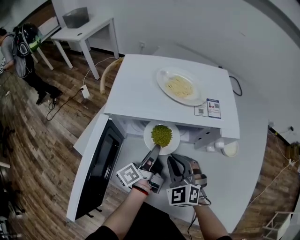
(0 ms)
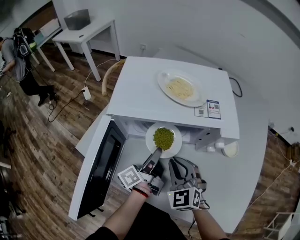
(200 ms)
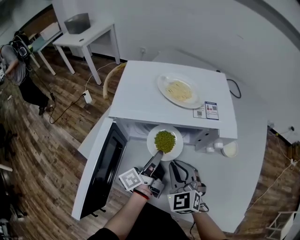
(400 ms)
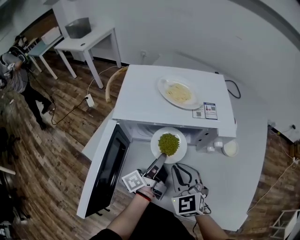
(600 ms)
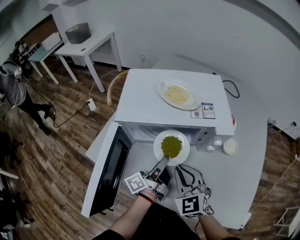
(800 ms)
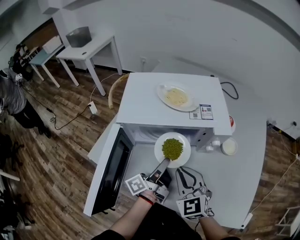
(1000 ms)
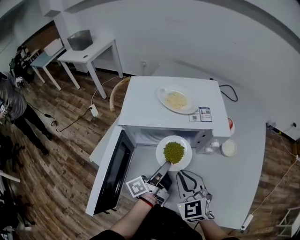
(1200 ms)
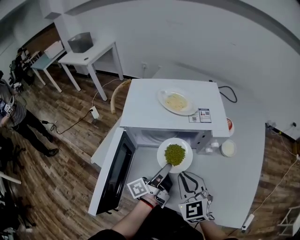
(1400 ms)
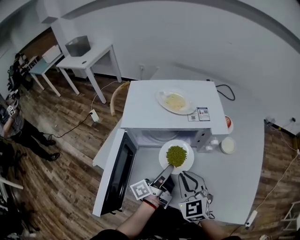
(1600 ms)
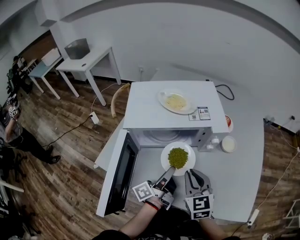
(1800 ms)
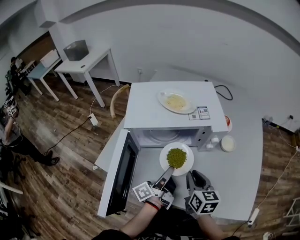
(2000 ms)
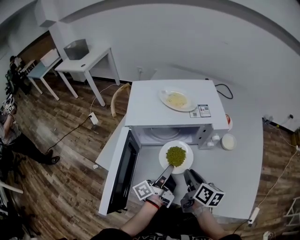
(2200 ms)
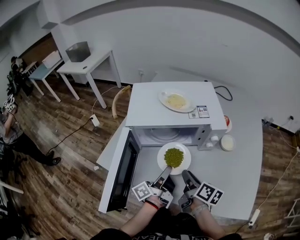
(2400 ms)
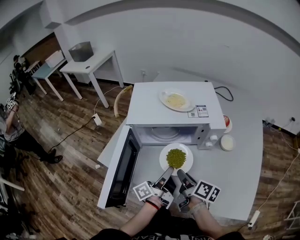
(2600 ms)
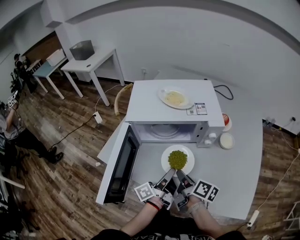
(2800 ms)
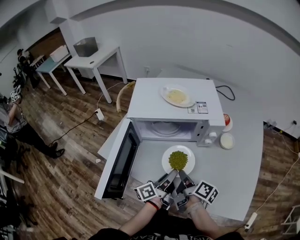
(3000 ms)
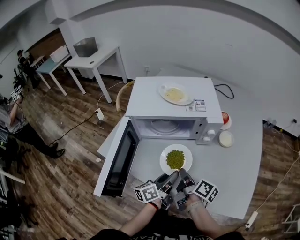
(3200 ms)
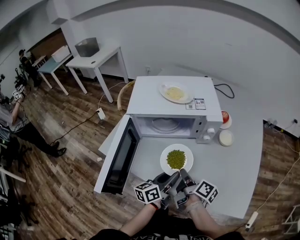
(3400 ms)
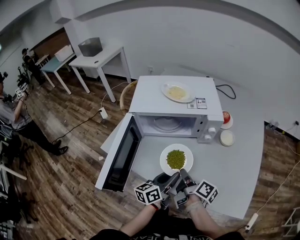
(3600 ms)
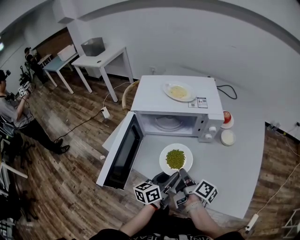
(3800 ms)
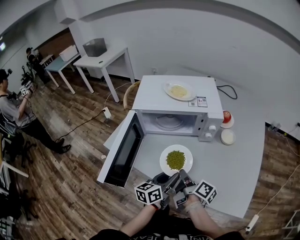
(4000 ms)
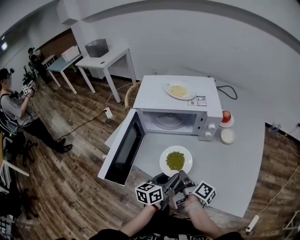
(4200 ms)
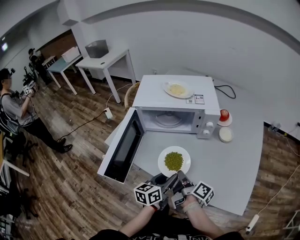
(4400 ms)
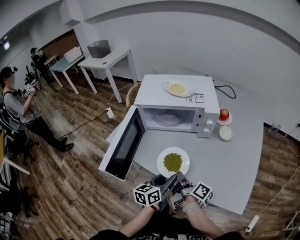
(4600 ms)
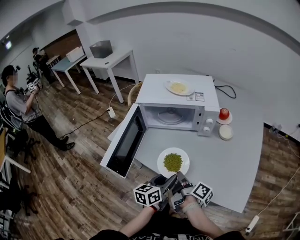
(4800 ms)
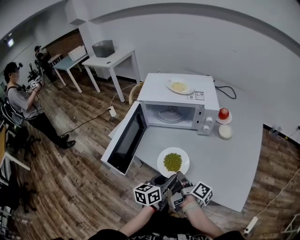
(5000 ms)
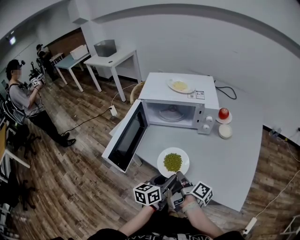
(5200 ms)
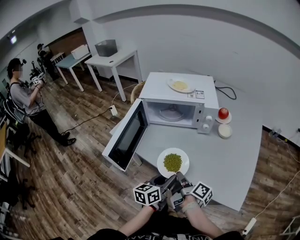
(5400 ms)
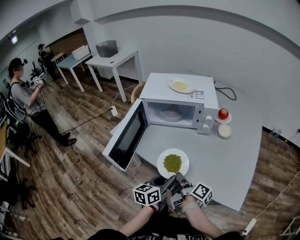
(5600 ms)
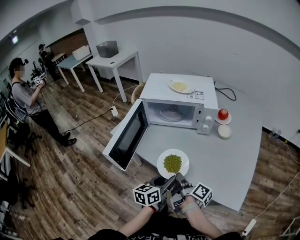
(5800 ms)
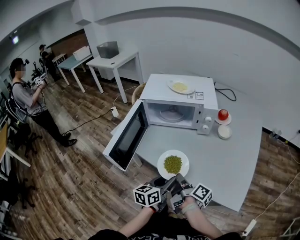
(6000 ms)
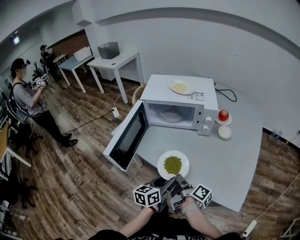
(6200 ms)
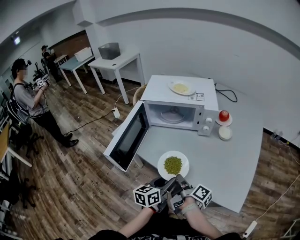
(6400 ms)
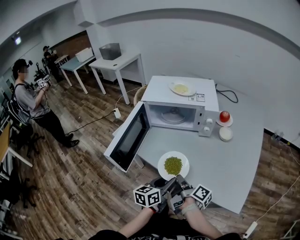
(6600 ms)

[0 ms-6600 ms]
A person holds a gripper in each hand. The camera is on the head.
0 ms to 1600 ms: The left gripper travels backward and upward by some 10 cm, while the right gripper is displaced upward and backward by approximately 10 cm, and swivels roughly 20 degrees.
1600 ms to 3200 ms: The right gripper moves downward, about 5 cm, and rotates around the line of its fingers by roughly 90 degrees, clockwise from behind, while the left gripper travels backward by about 10 cm, and turns by some 30 degrees.
3200 ms to 5000 ms: The grippers both shift backward by some 10 cm. The left gripper turns by roughly 30 degrees.
5000 ms to 6600 ms: There are only small adjustments of the grippers.

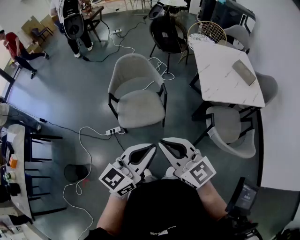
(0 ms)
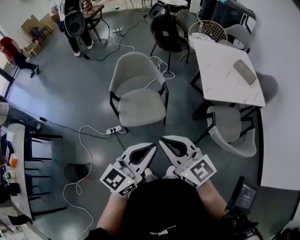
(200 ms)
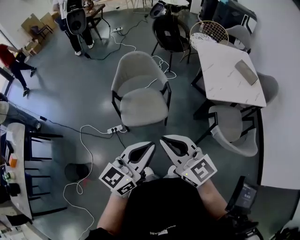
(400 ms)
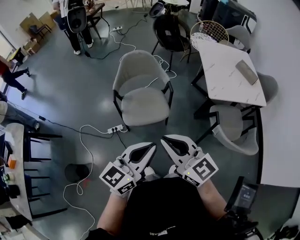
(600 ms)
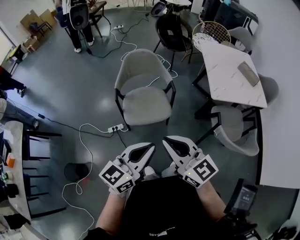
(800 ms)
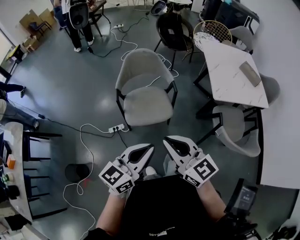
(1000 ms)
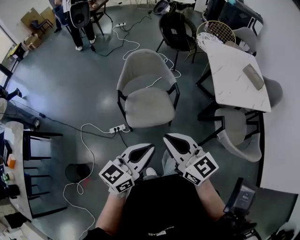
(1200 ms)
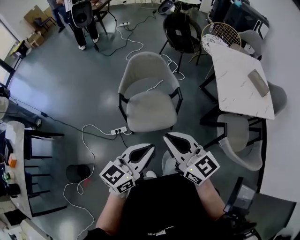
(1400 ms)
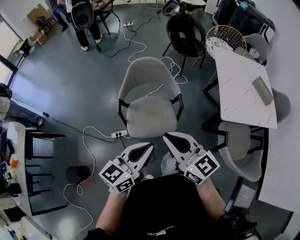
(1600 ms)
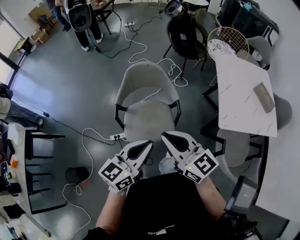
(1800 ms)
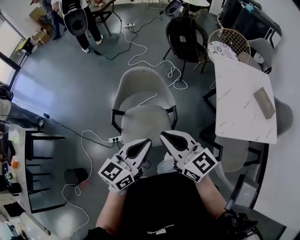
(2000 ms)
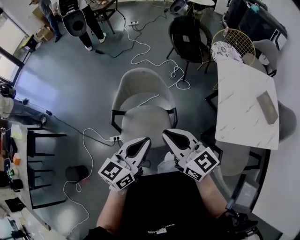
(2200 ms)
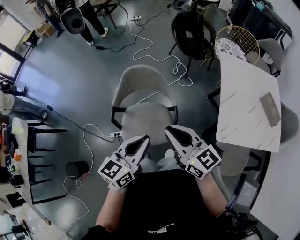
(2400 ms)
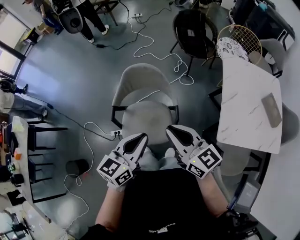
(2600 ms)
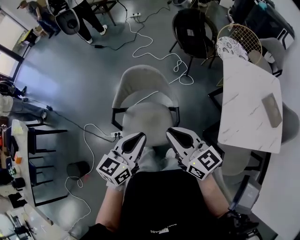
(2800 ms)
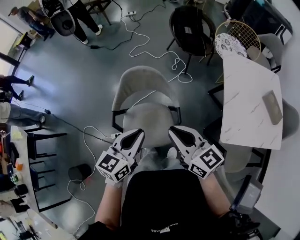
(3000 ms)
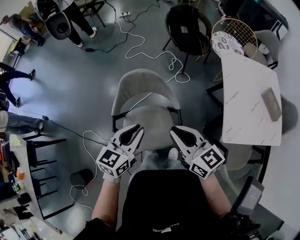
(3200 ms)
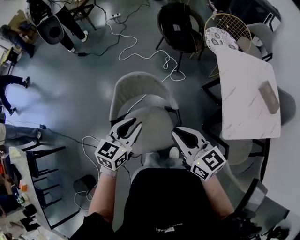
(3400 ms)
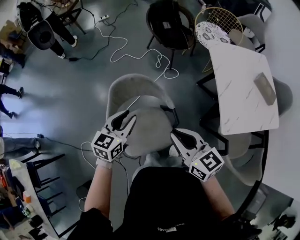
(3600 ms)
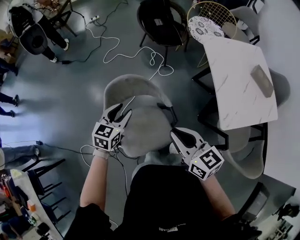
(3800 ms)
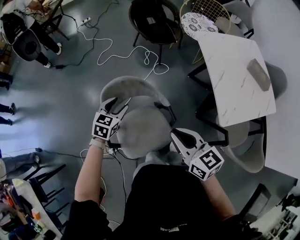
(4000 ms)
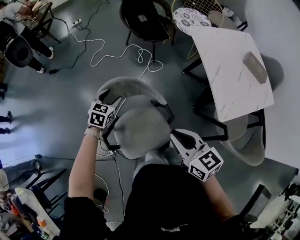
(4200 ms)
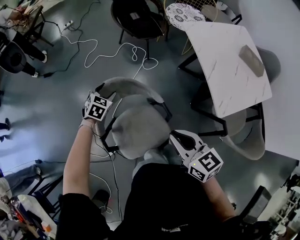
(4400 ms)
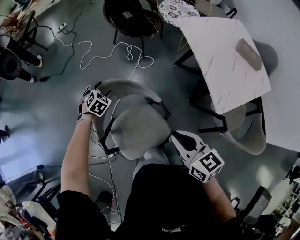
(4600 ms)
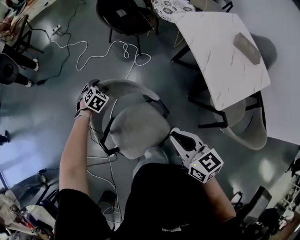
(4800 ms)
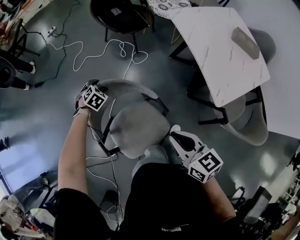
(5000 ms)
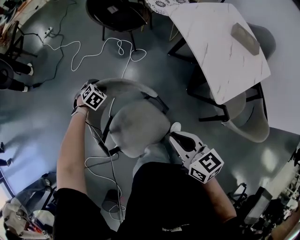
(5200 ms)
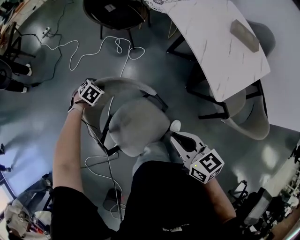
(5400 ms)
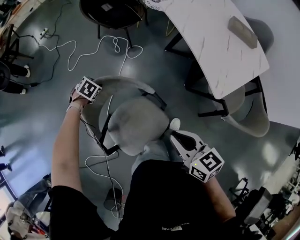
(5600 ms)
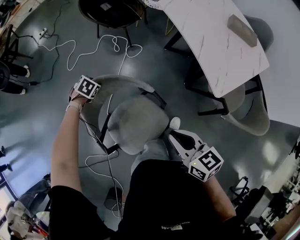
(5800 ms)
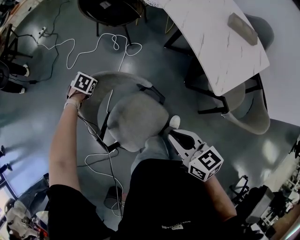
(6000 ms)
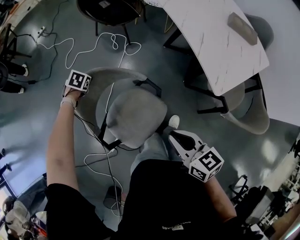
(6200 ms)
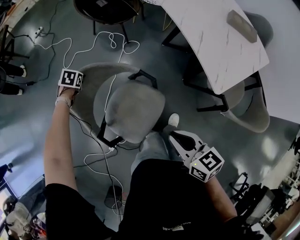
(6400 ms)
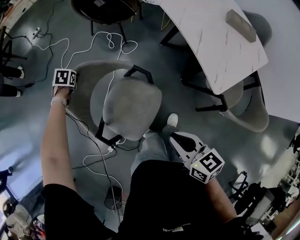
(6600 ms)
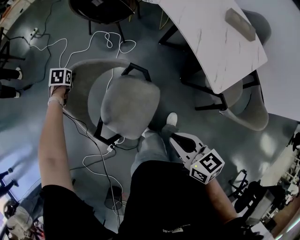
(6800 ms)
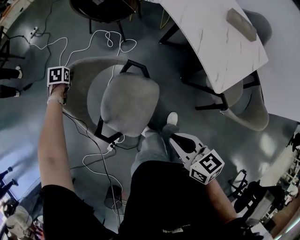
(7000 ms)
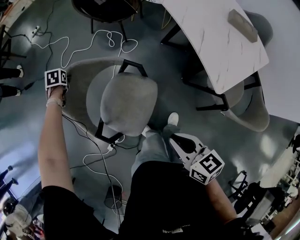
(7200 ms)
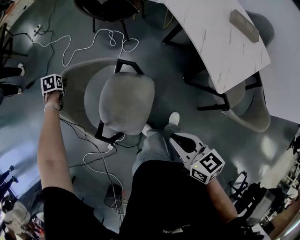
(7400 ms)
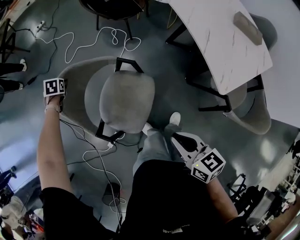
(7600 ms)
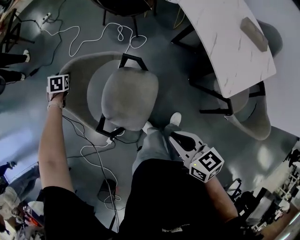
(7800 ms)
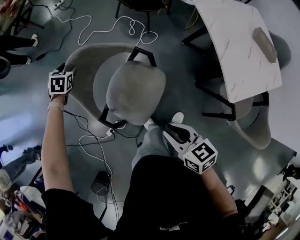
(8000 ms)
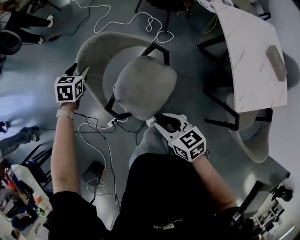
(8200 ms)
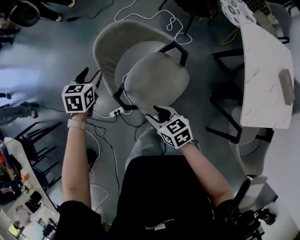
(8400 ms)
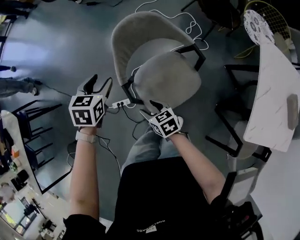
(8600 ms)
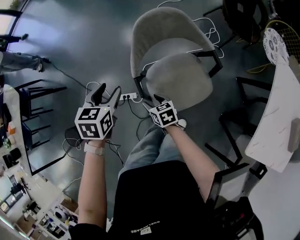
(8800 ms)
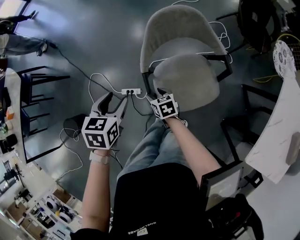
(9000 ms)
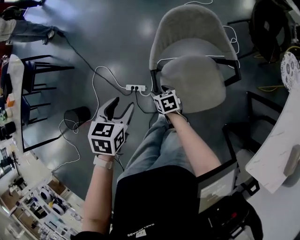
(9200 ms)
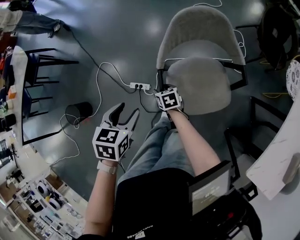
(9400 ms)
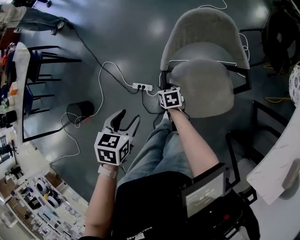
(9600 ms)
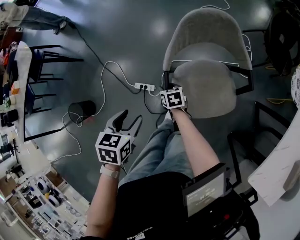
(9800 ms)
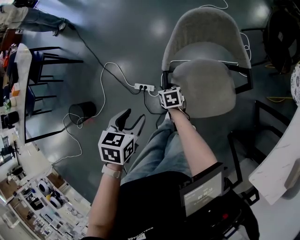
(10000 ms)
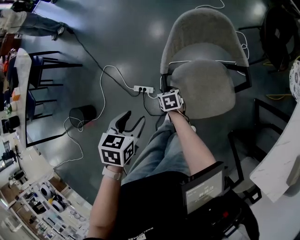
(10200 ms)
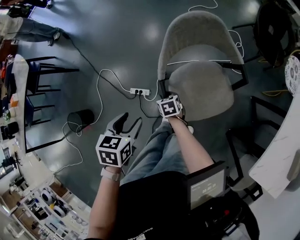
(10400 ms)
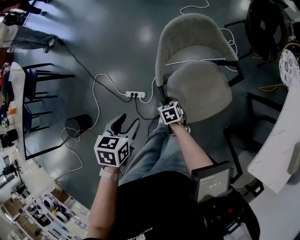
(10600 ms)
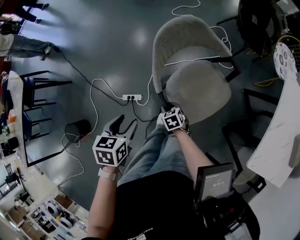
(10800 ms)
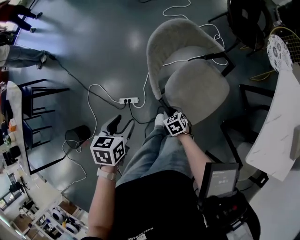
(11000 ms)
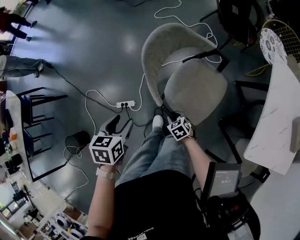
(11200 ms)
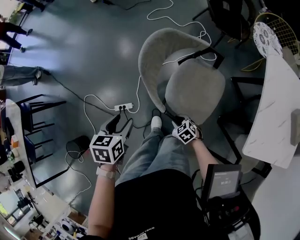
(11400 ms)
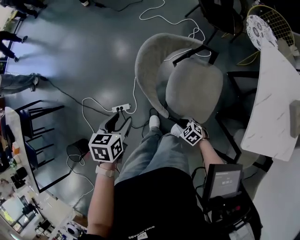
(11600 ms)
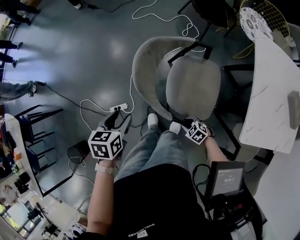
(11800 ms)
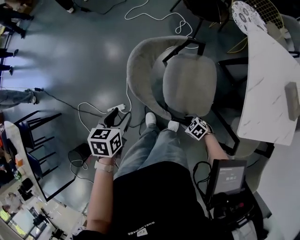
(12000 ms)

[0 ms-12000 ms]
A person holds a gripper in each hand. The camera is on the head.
0 ms to 1600 ms: Both grippers move forward and to the left, about 20 cm.
1600 ms to 3000 ms: The right gripper goes some 20 cm forward and to the right. Meanwhile the left gripper travels forward by approximately 20 cm.
3000 ms to 4400 ms: The left gripper shifts roughly 40 cm forward and downward, points its fingers some 40 degrees further downward, and opens up, while the right gripper moves downward, about 5 cm, and rotates approximately 30 degrees.
4400 ms to 6000 ms: The left gripper shifts about 10 cm downward, changes its angle by about 30 degrees, and closes. Meanwhile the right gripper shifts approximately 5 cm downward.
6000 ms to 7600 ms: The left gripper shifts by about 20 cm, and swivels some 30 degrees.
7600 ms to 9000 ms: The right gripper ends up about 40 cm from where it was, swivels approximately 60 degrees, and opens; the left gripper moves some 50 cm, and twists approximately 50 degrees counterclockwise, seen from behind.
9000 ms to 10400 ms: The right gripper shifts roughly 5 cm downward, and closes its fingers; the left gripper travels backward by about 5 cm.
10400 ms to 12000 ms: The right gripper goes about 40 cm backward and to the right. The left gripper goes approximately 15 cm to the right, and swivels about 20 degrees.

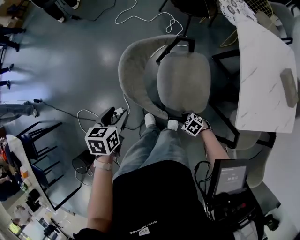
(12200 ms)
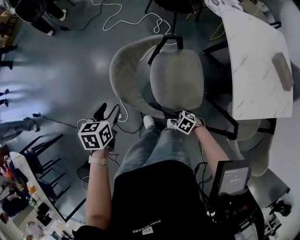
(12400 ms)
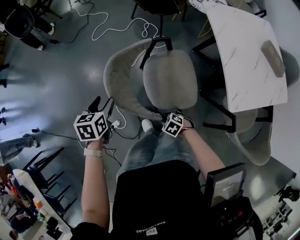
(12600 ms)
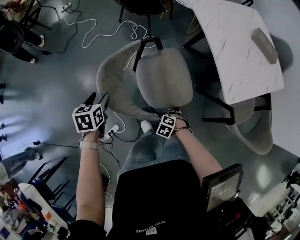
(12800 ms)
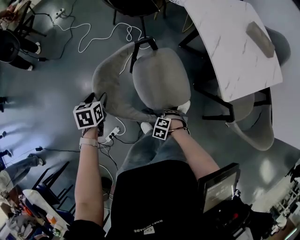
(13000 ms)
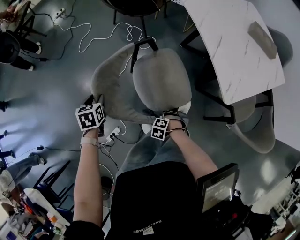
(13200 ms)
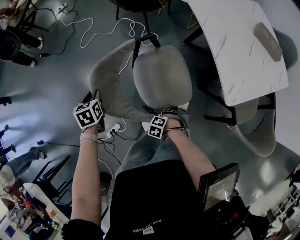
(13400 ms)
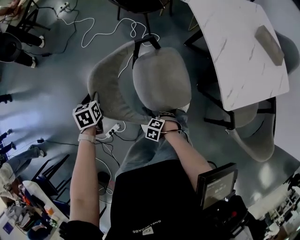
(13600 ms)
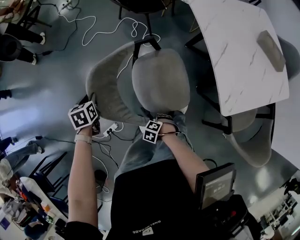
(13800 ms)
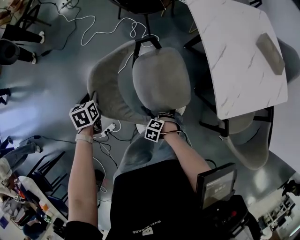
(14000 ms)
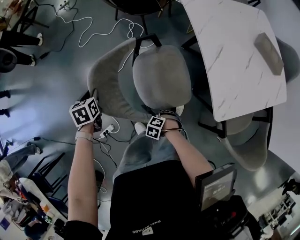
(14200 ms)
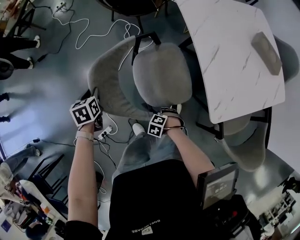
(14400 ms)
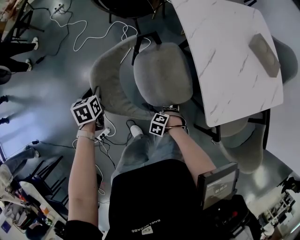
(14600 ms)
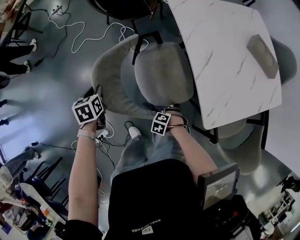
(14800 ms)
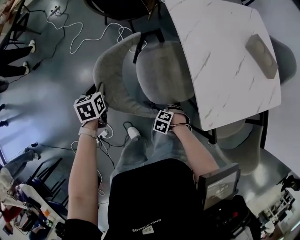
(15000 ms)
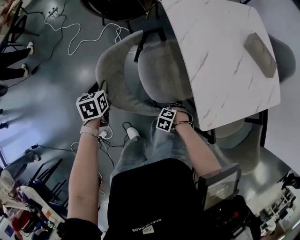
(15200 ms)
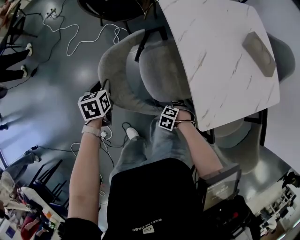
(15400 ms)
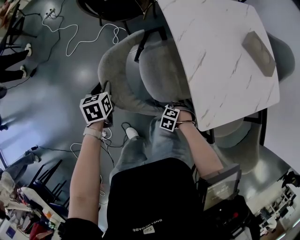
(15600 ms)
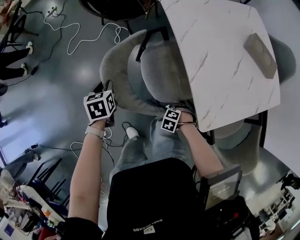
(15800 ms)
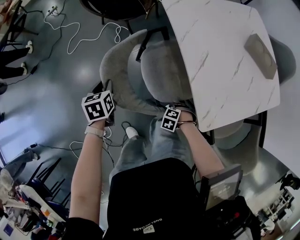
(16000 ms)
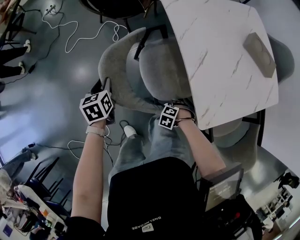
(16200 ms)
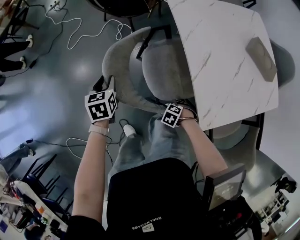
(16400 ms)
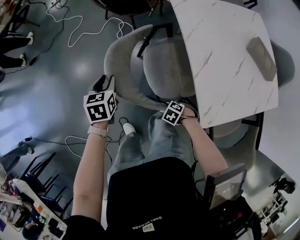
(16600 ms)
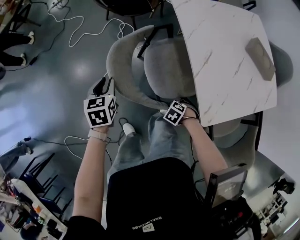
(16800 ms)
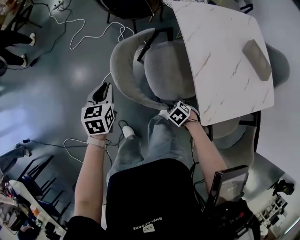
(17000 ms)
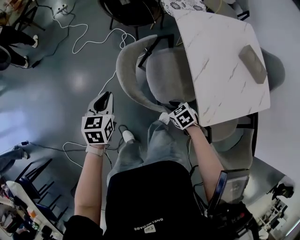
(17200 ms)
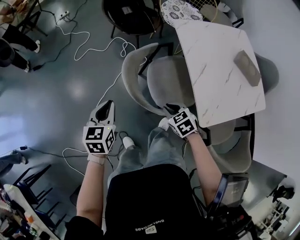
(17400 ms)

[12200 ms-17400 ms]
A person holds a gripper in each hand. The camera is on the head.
12200 ms to 14000 ms: The left gripper changes place by some 20 cm, and closes its fingers.
14000 ms to 15600 ms: The right gripper moves approximately 20 cm; the left gripper shifts by some 25 cm.
15600 ms to 17400 ms: The right gripper heads upward, covering approximately 25 cm, changes its angle by some 50 degrees, and closes its fingers, while the left gripper shifts by some 20 cm, and changes its angle by some 20 degrees.
